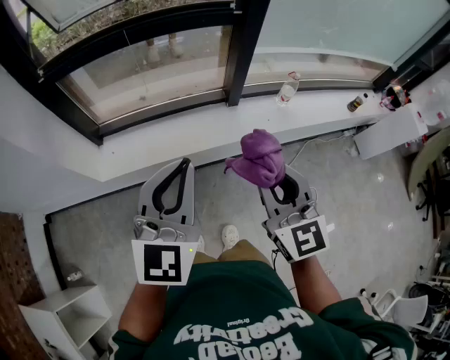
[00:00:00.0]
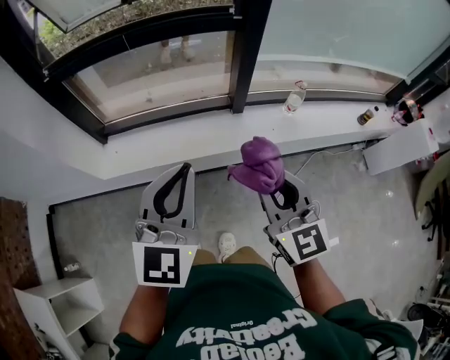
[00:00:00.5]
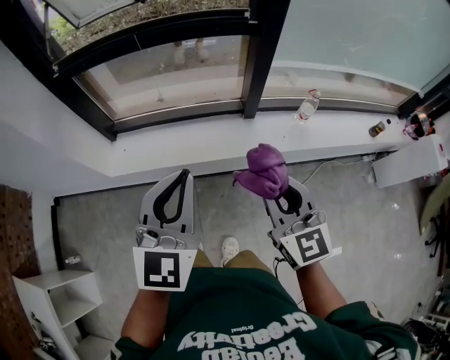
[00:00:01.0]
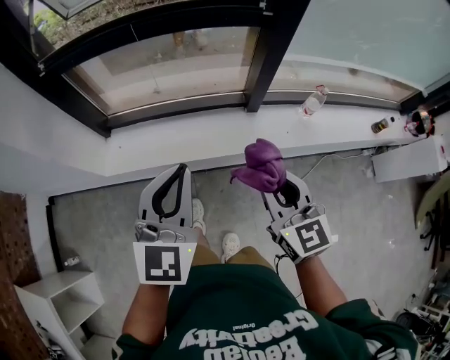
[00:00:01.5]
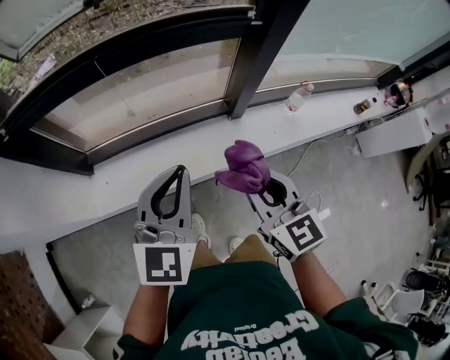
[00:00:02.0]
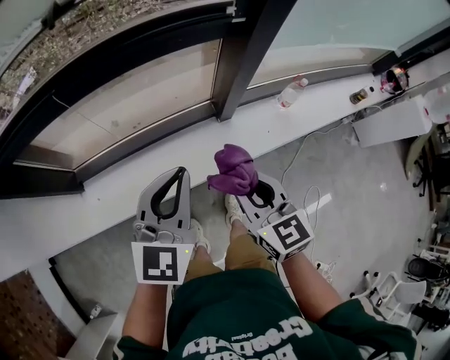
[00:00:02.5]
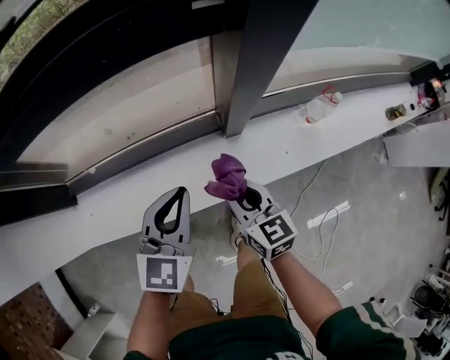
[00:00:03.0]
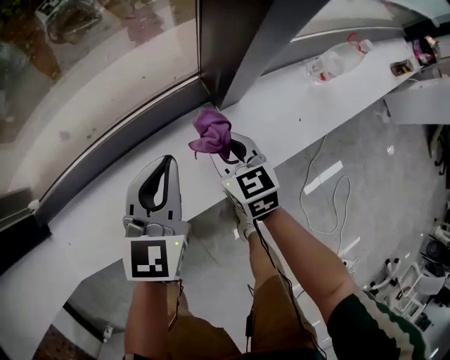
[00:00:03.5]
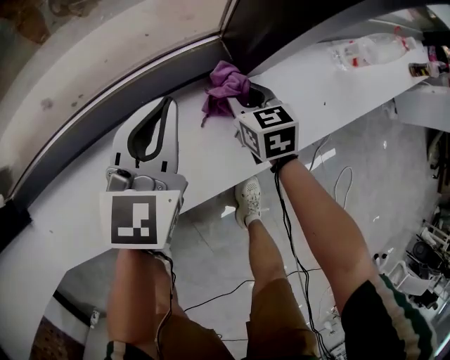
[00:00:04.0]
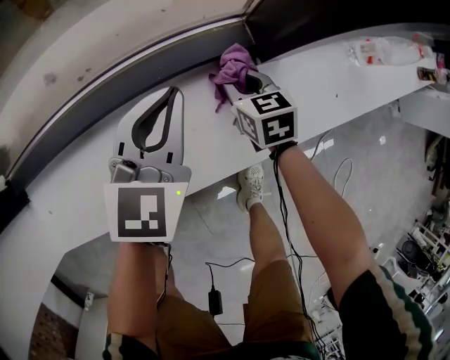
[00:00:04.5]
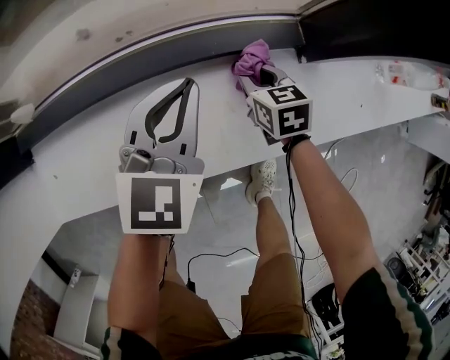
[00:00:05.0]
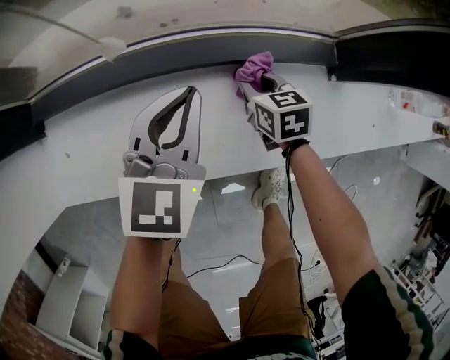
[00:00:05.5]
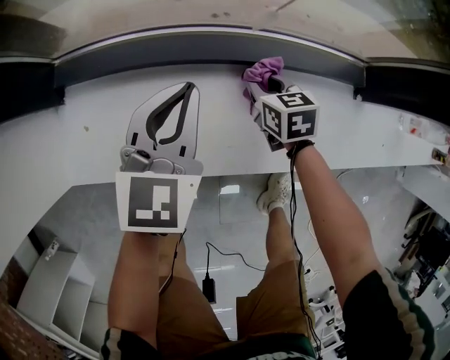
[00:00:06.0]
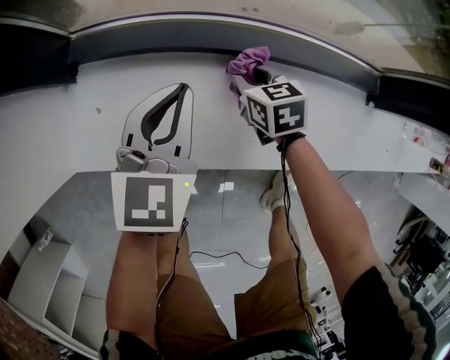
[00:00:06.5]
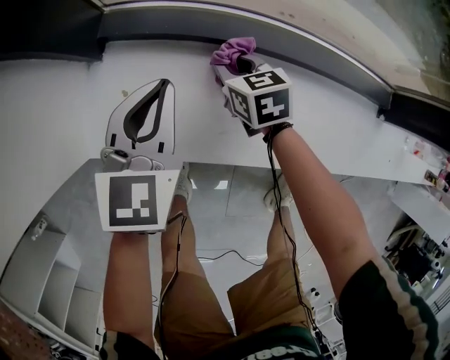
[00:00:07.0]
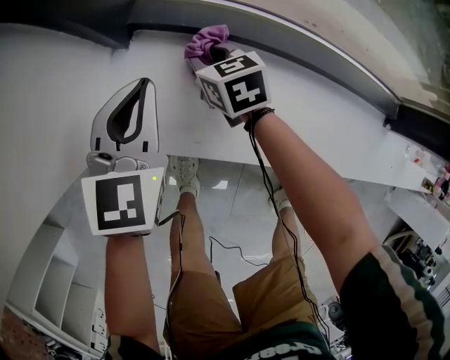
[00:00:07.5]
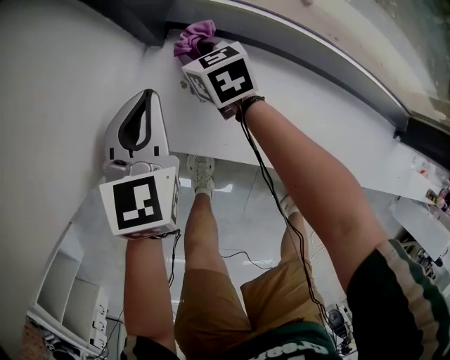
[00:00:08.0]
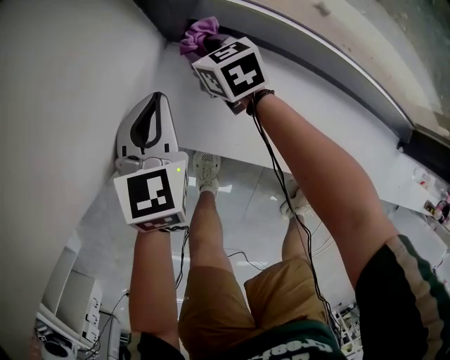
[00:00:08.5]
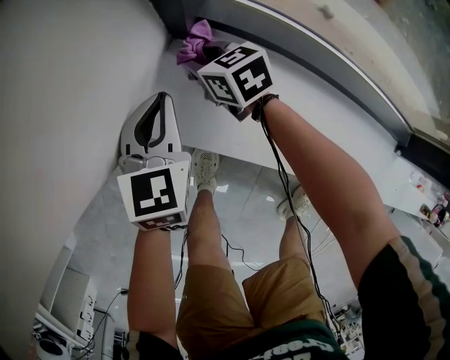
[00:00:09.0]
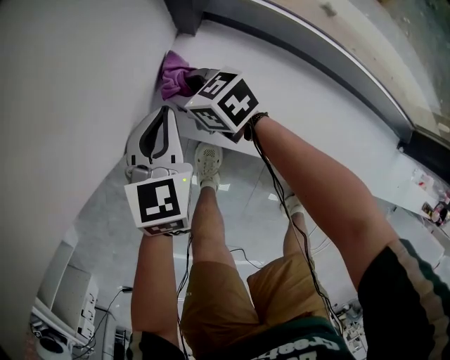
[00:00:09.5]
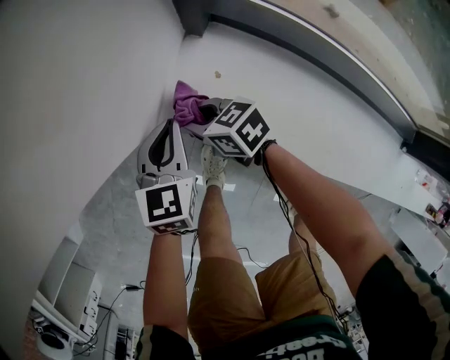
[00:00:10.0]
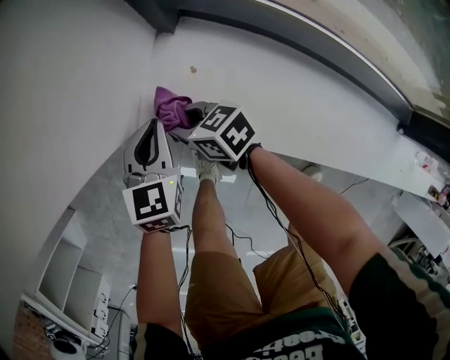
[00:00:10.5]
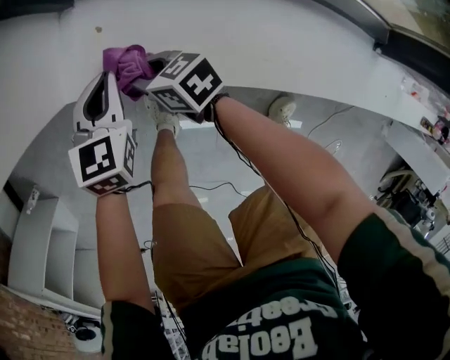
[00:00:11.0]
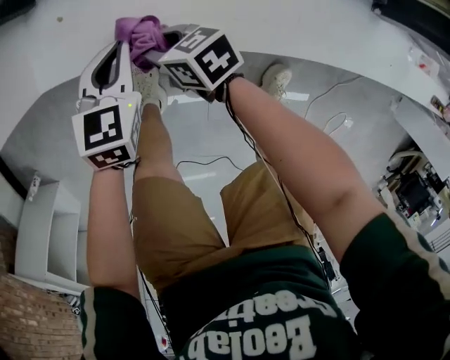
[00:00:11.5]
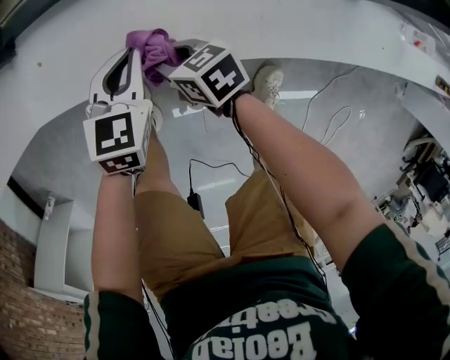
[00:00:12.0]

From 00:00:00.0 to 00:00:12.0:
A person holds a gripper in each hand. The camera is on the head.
From 00:00:00.0 to 00:00:02.0: The left gripper is displaced forward by some 20 cm; the right gripper shifts about 20 cm forward and downward.
From 00:00:02.0 to 00:00:04.0: Both grippers travel together downward and forward, about 60 cm. The right gripper rotates roughly 30 degrees.
From 00:00:04.0 to 00:00:06.0: Both grippers travel together to the left, some 30 cm. The right gripper turns by roughly 20 degrees.
From 00:00:06.0 to 00:00:08.0: The right gripper moves approximately 50 cm, and rotates approximately 30 degrees, while the left gripper changes place by about 35 cm, and changes its angle by approximately 30 degrees.
From 00:00:08.0 to 00:00:10.0: The left gripper travels to the left by some 10 cm, while the right gripper travels to the left and backward by roughly 20 cm, and turns by about 30 degrees.
From 00:00:10.0 to 00:00:12.0: The right gripper ends up some 35 cm from where it was, and rotates about 30 degrees; the left gripper moves some 35 cm, and rotates about 40 degrees.

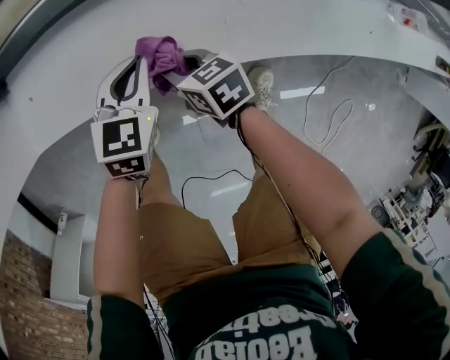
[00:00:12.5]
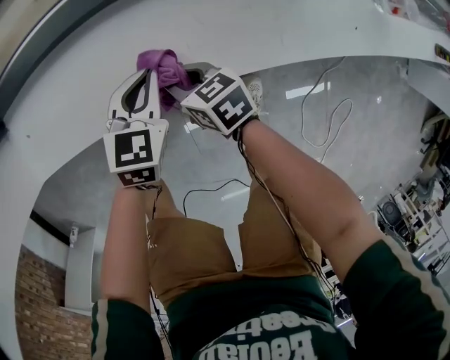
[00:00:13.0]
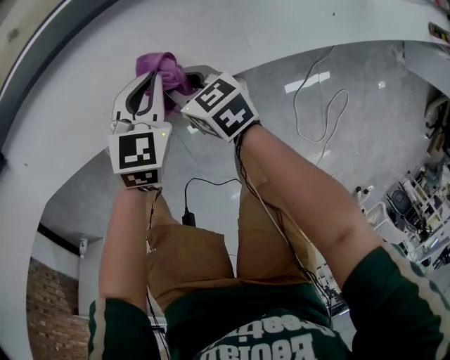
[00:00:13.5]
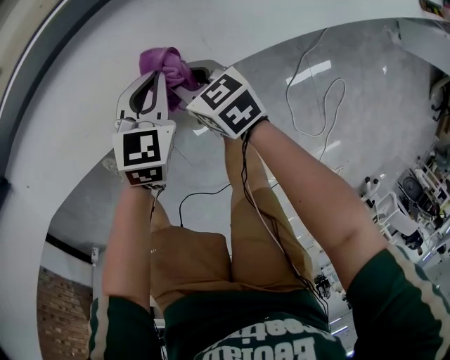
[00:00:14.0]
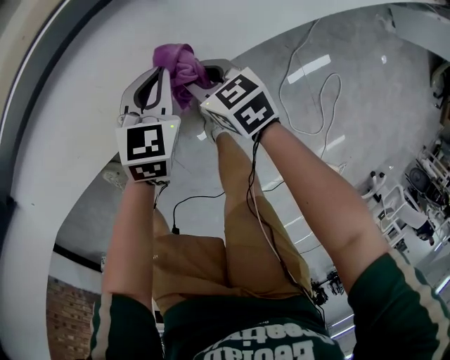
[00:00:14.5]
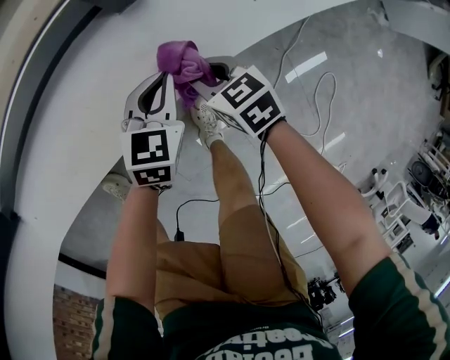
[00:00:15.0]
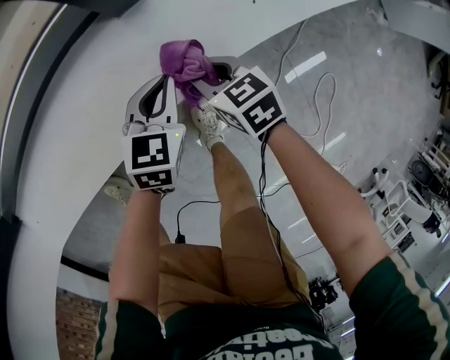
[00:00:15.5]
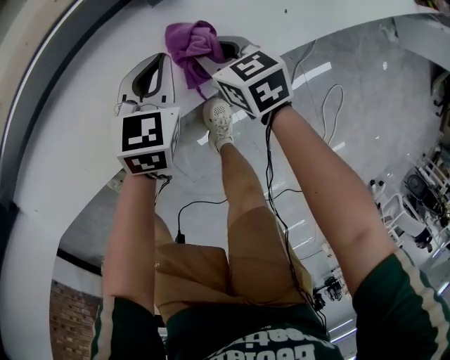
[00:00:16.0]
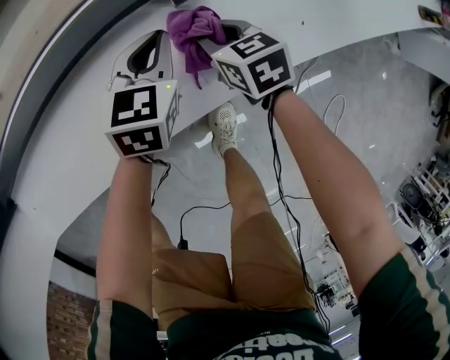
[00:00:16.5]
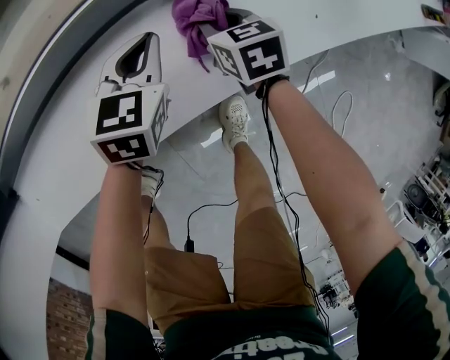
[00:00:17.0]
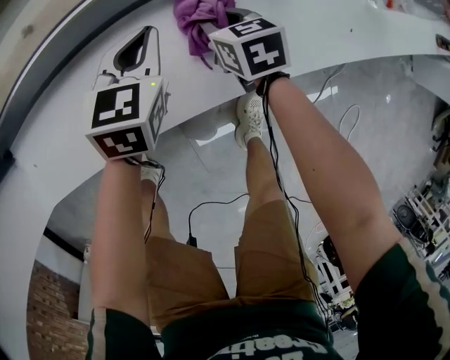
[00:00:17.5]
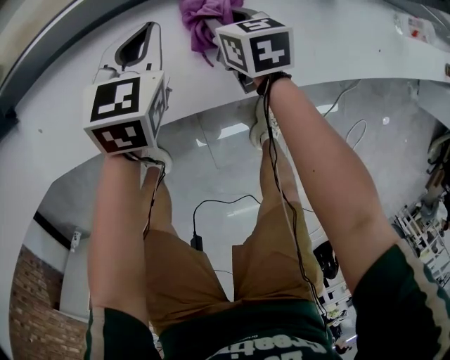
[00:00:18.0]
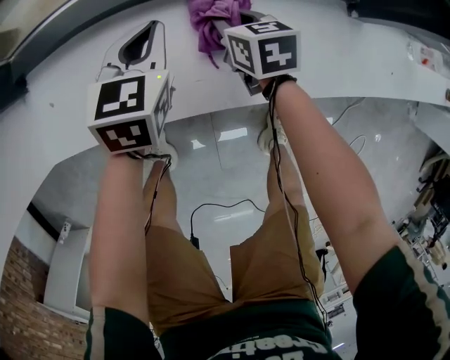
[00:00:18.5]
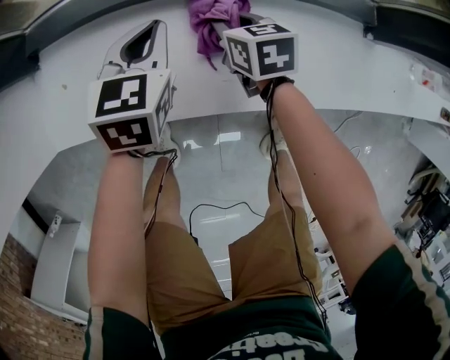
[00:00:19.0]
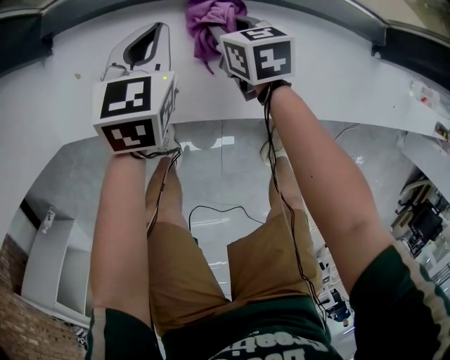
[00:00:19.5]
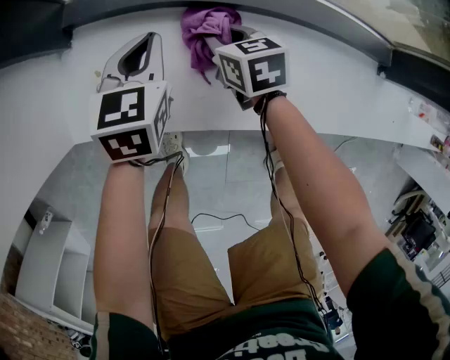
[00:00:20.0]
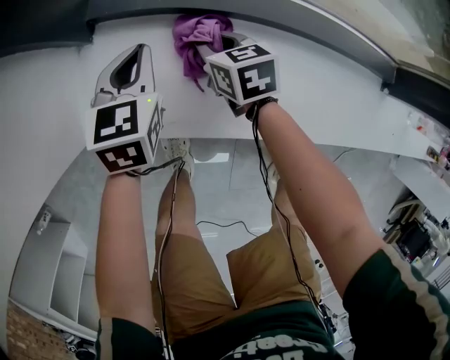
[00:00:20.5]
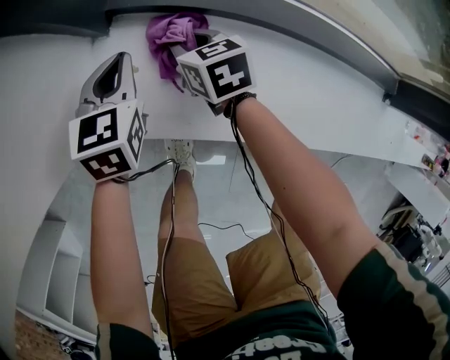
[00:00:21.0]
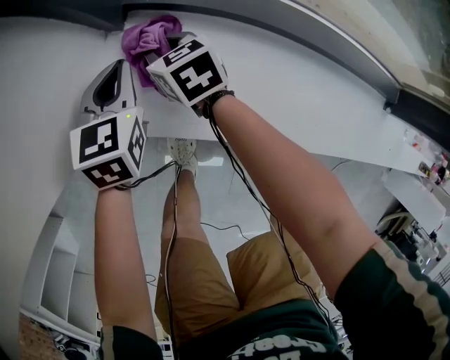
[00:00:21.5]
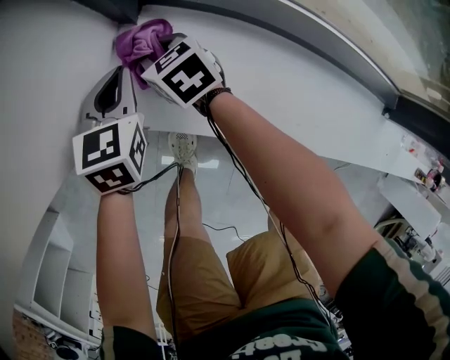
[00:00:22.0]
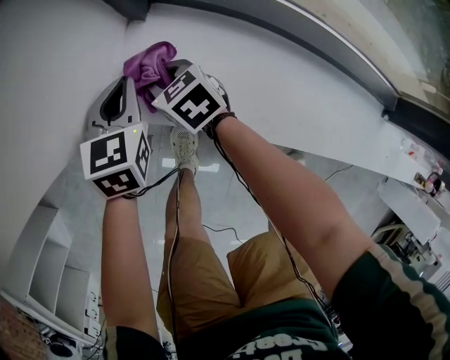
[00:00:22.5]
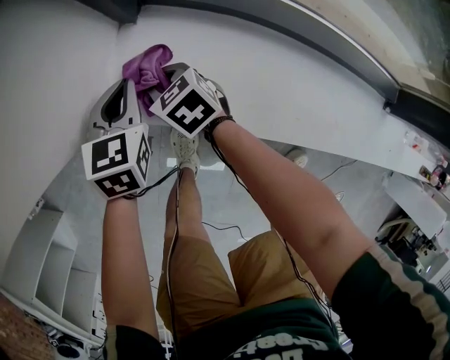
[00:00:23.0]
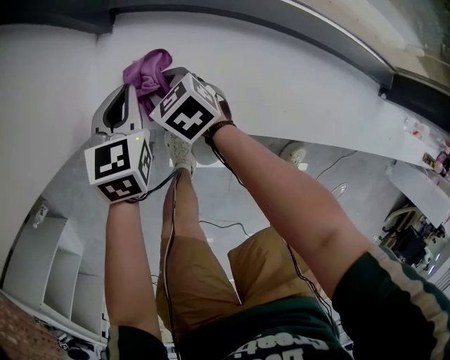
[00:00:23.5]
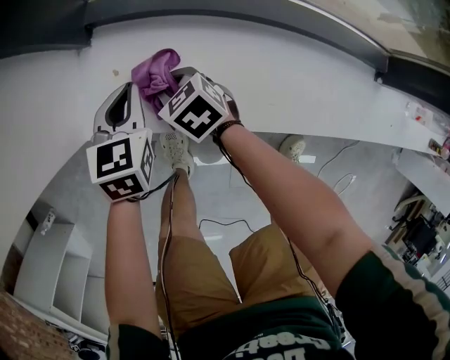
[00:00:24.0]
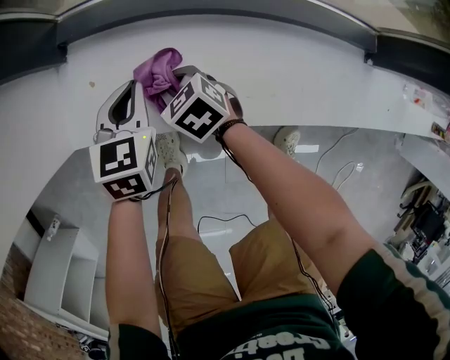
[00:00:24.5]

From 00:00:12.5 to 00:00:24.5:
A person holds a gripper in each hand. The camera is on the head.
From 00:00:12.5 to 00:00:14.5: The two grippers go approximately 35 cm to the right.
From 00:00:14.5 to 00:00:16.5: Both grippers move forward, approximately 15 cm.
From 00:00:16.5 to 00:00:18.5: The grippers both shift to the left by some 35 cm. The left gripper changes its angle by approximately 20 degrees.
From 00:00:18.5 to 00:00:20.5: The two grippers go some 25 cm to the left.
From 00:00:20.5 to 00:00:22.5: Both grippers move to the left, roughly 20 cm. The right gripper rotates some 30 degrees.
From 00:00:22.5 to 00:00:24.5: The grippers both shift to the right and backward by about 20 cm.

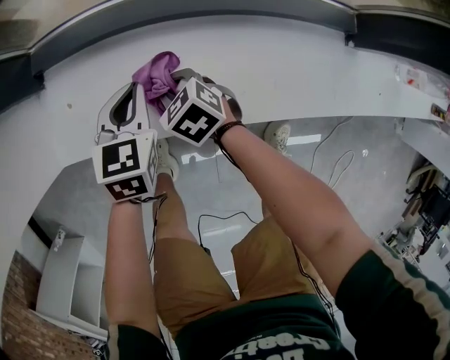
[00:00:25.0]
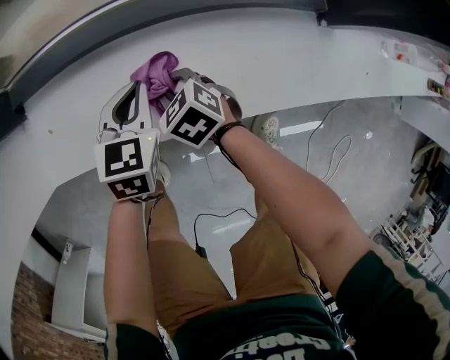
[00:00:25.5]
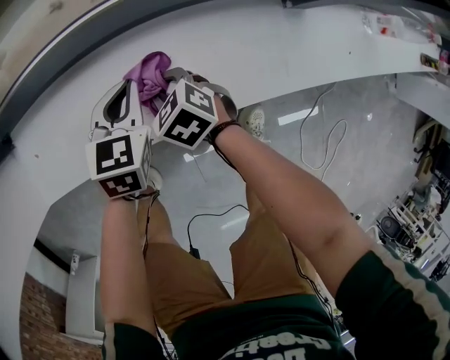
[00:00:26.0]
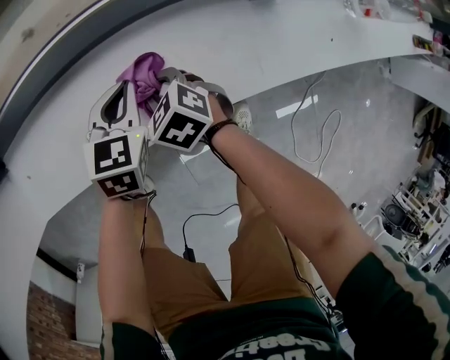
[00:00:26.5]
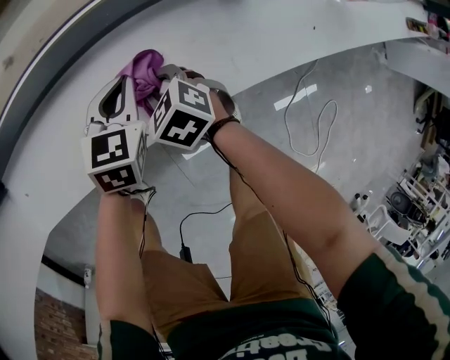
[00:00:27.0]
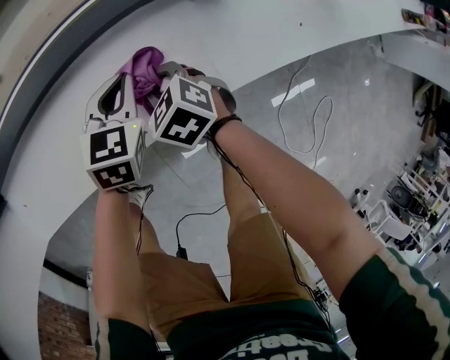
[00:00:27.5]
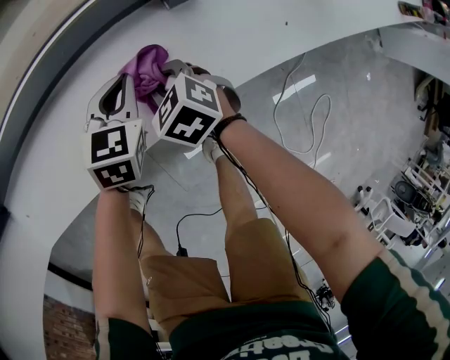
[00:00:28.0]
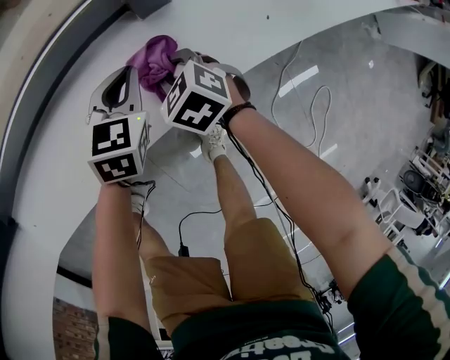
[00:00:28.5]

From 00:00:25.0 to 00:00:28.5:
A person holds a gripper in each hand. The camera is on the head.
From 00:00:25.0 to 00:00:27.0: Both grippers move to the right, roughly 30 cm. The left gripper turns by approximately 20 degrees.
From 00:00:27.0 to 00:00:28.5: Both grippers travel together to the right, about 20 cm.
